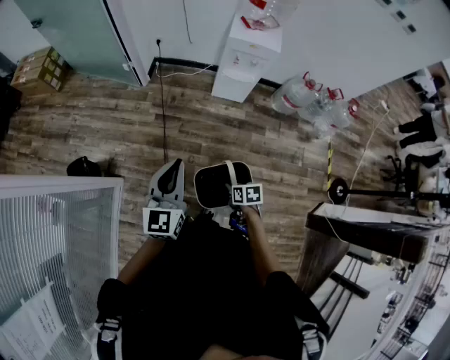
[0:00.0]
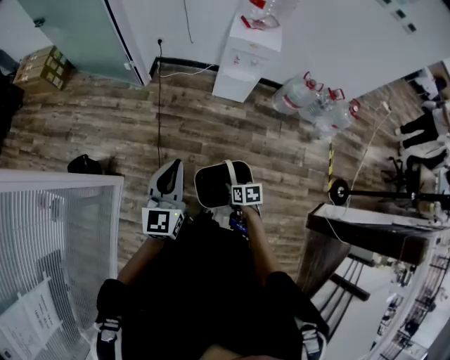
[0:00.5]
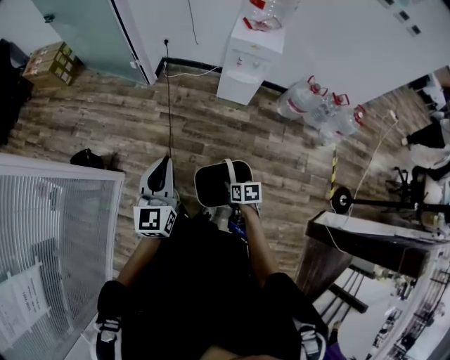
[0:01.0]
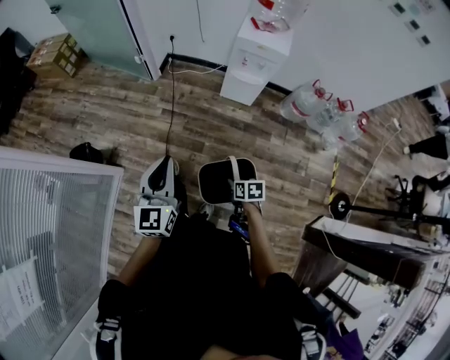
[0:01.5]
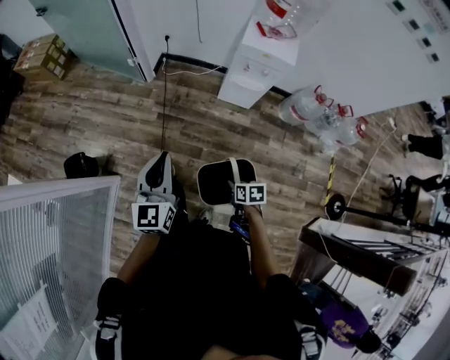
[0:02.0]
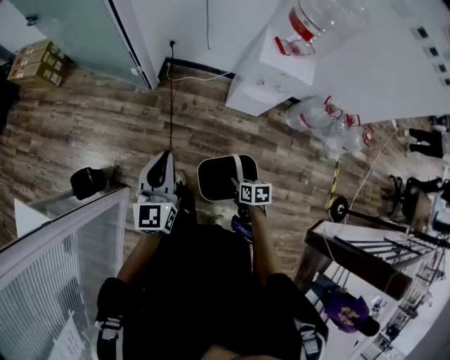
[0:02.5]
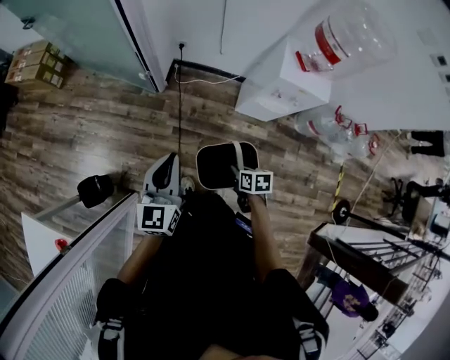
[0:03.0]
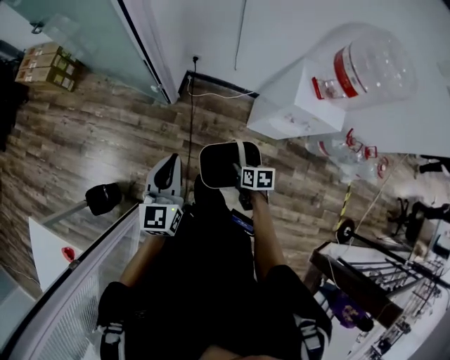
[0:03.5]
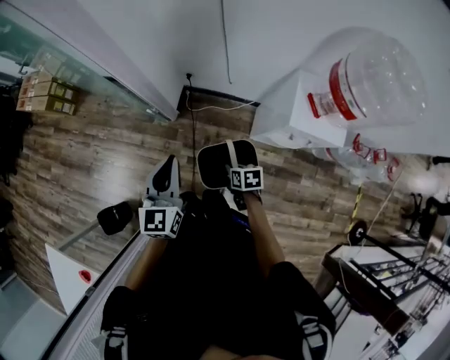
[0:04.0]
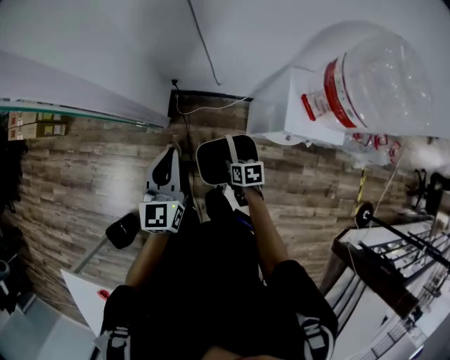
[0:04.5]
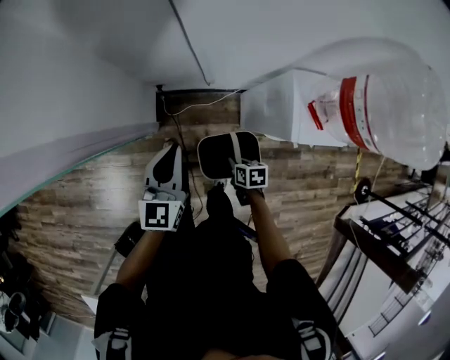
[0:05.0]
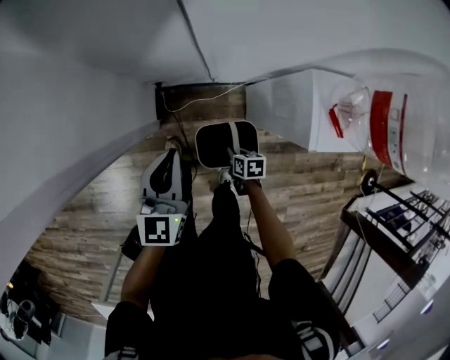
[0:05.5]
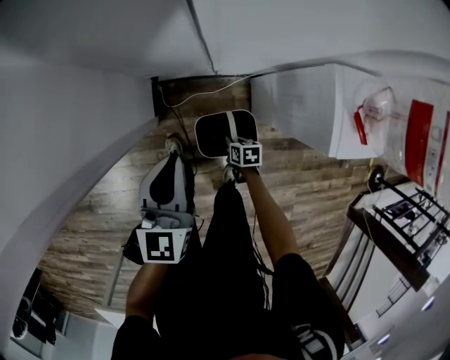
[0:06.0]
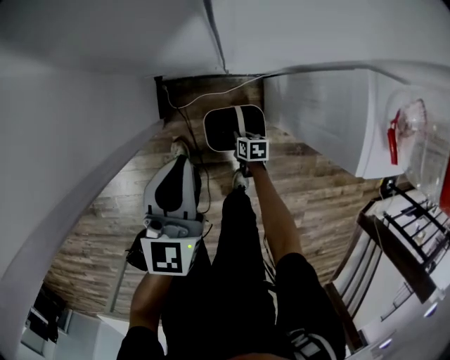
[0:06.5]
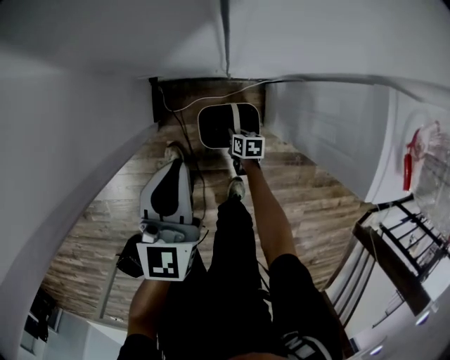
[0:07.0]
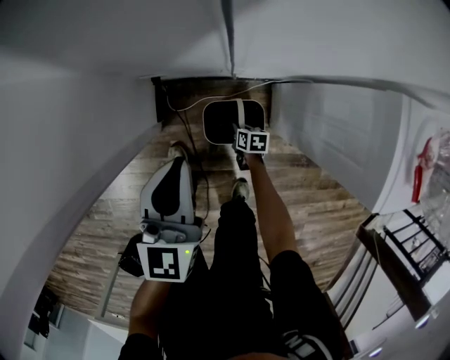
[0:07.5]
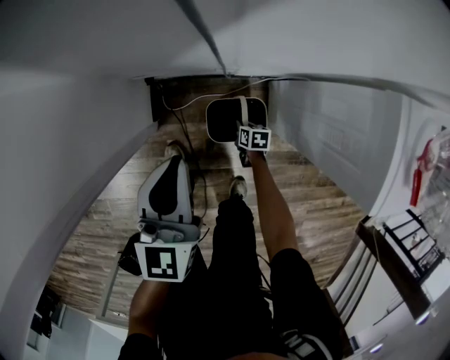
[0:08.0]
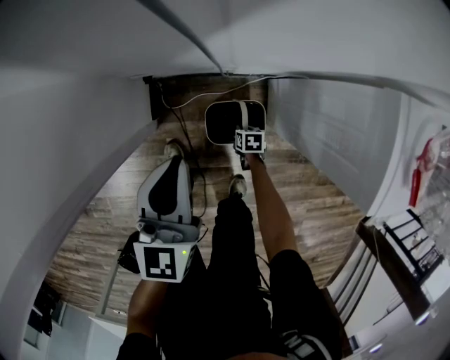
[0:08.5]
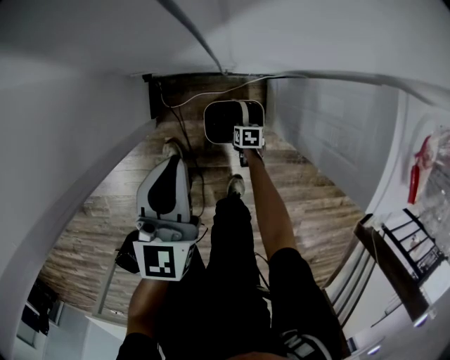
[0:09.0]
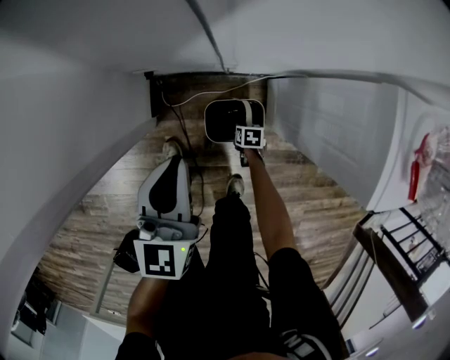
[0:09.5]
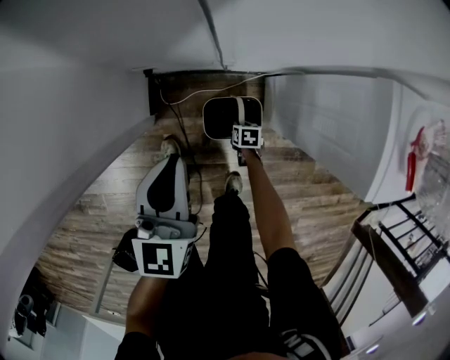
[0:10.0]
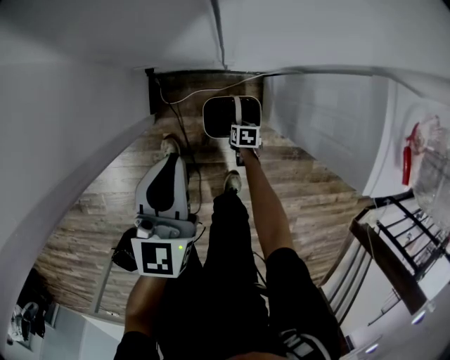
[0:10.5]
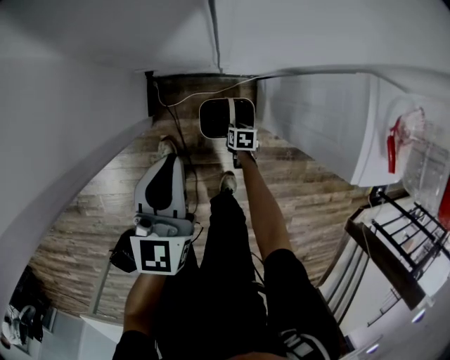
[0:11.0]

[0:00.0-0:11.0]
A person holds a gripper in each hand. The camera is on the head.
0:00.0 to 0:02.0: The left gripper heads forward, covering about 10 cm. The right gripper shifts approximately 10 cm forward and to the right.
0:02.0 to 0:03.5: Both grippers travel together forward, some 40 cm.
0:03.5 to 0:05.5: The right gripper travels forward and downward by approximately 35 cm, while the left gripper travels forward and to the right by approximately 40 cm, and rotates some 20 degrees.
0:05.5 to 0:07.5: The right gripper shifts roughly 30 cm downward; the left gripper heads downward, covering approximately 20 cm.
0:07.5 to 0:09.0: The right gripper shifts by roughly 5 cm.
0:09.0 to 0:11.0: The two grippers go approximately 5 cm upward.

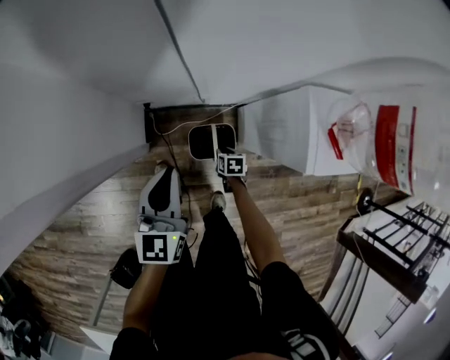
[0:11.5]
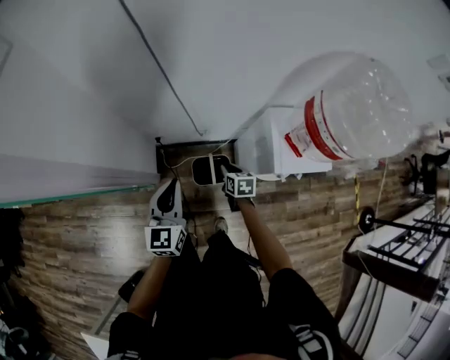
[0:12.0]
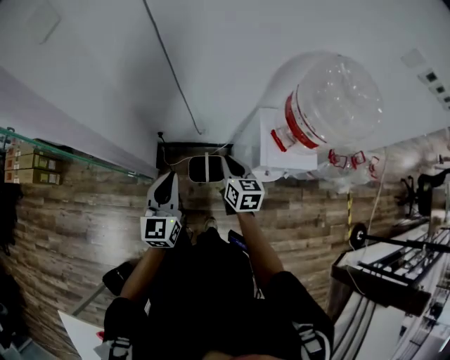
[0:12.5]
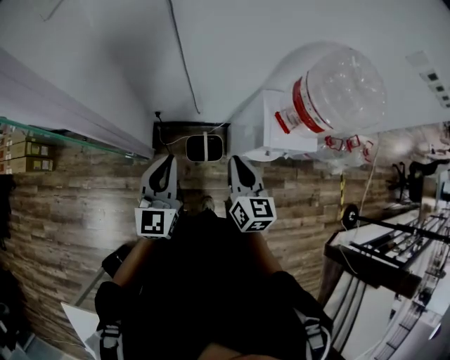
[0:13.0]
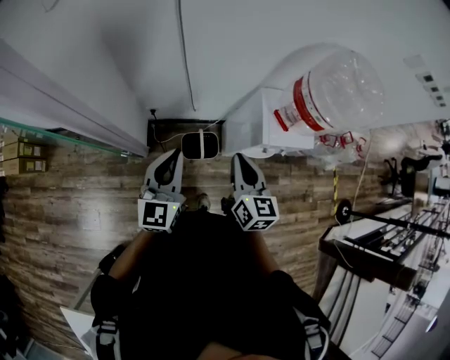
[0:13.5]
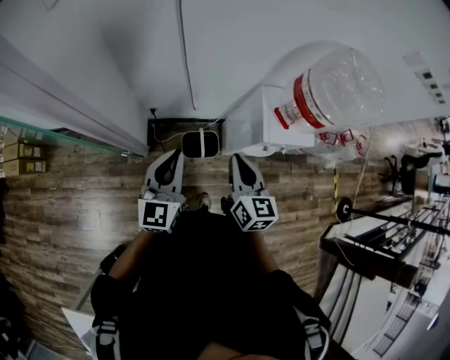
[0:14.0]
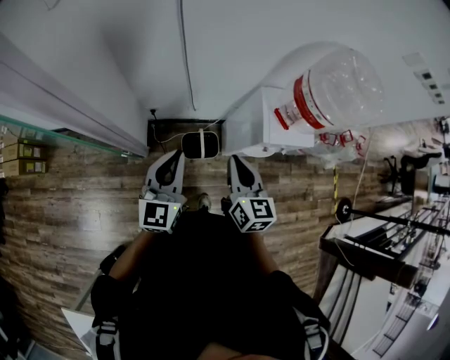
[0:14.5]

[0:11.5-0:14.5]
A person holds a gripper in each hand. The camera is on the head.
0:11.5 to 0:13.0: The right gripper is displaced upward by some 60 cm, and tips its fingers upward by about 50 degrees; the left gripper heads upward and backward, covering roughly 25 cm.
0:13.0 to 0:14.5: There are only small adjustments of the grippers.

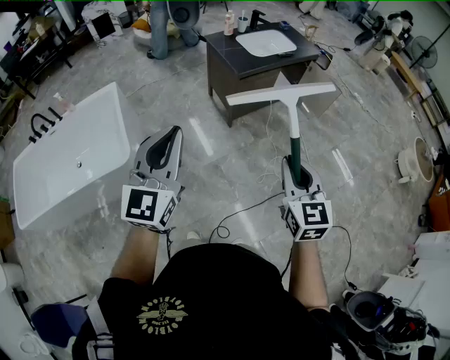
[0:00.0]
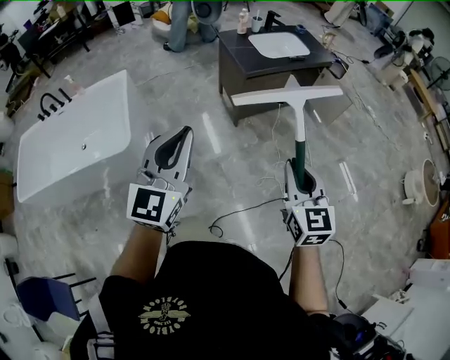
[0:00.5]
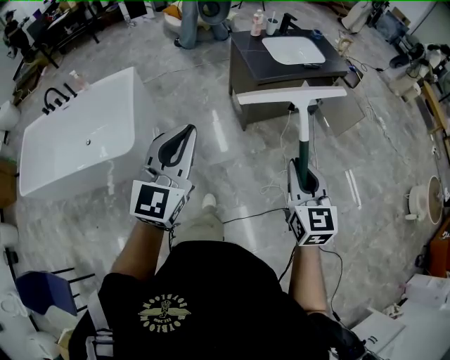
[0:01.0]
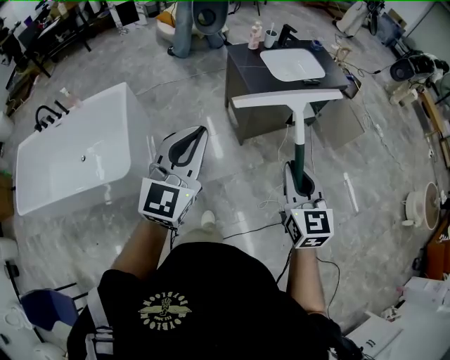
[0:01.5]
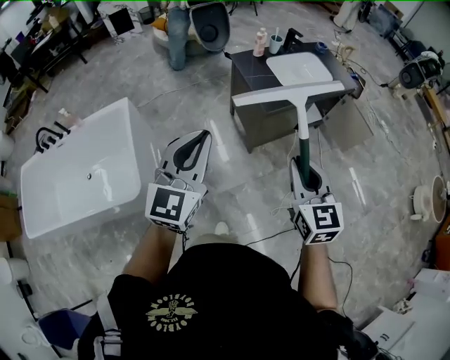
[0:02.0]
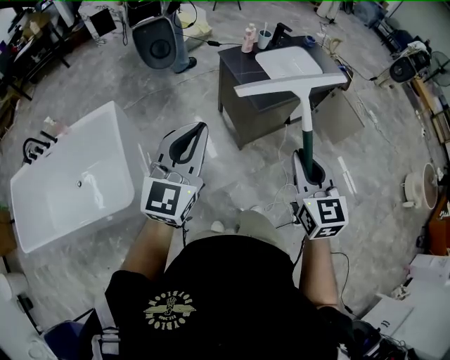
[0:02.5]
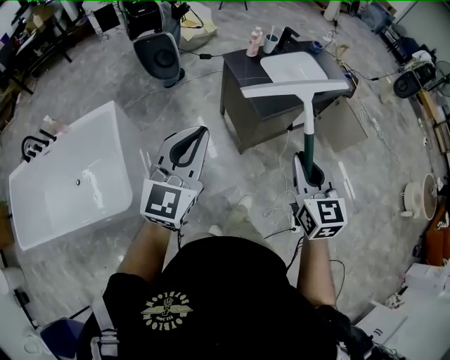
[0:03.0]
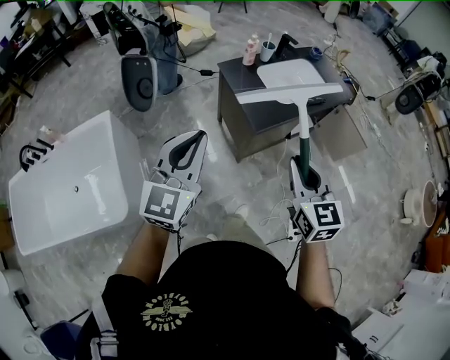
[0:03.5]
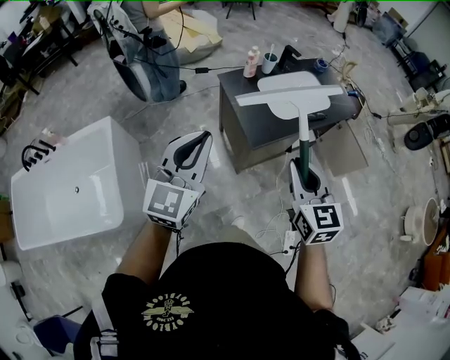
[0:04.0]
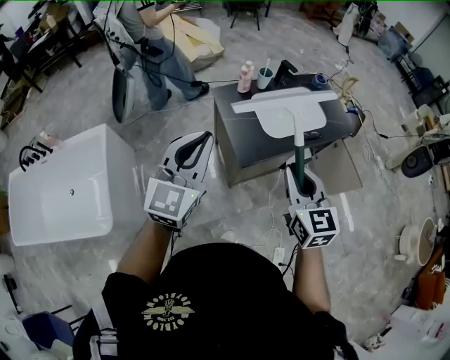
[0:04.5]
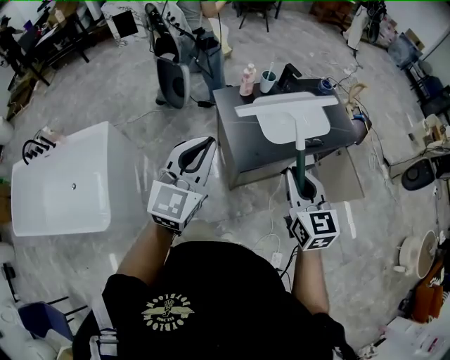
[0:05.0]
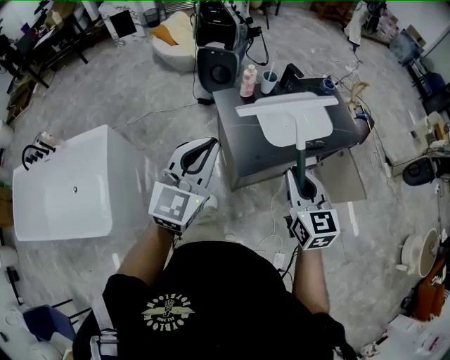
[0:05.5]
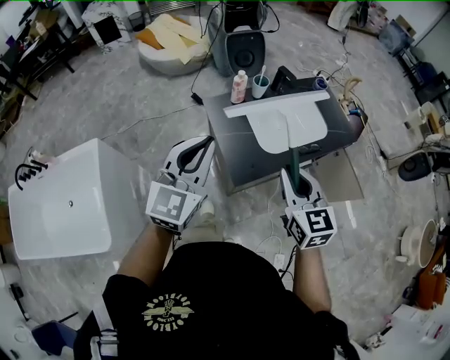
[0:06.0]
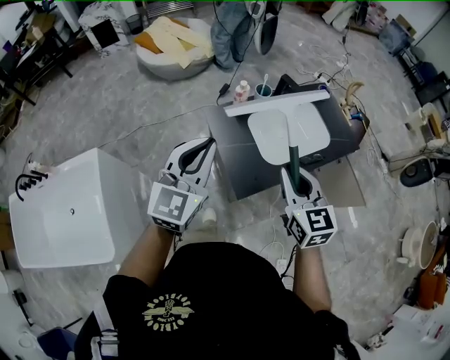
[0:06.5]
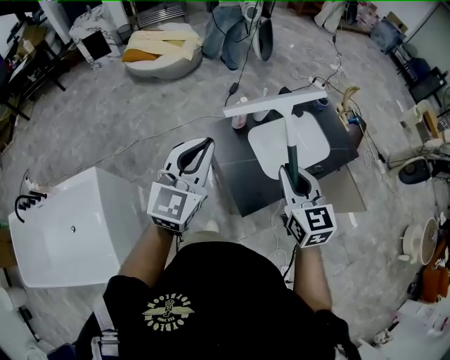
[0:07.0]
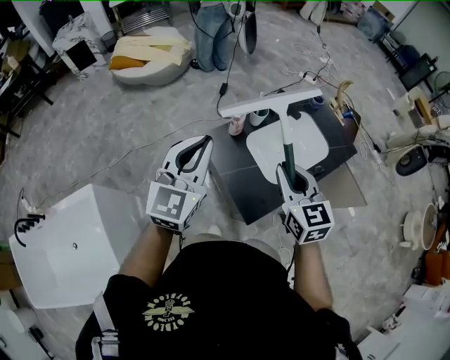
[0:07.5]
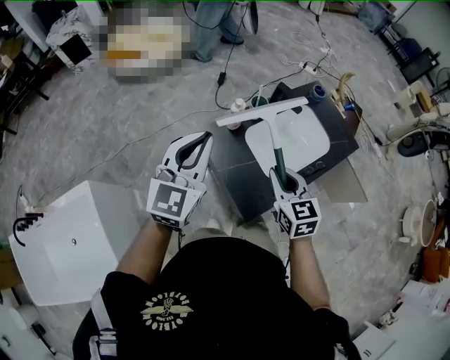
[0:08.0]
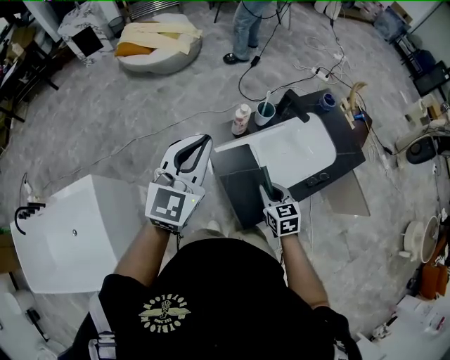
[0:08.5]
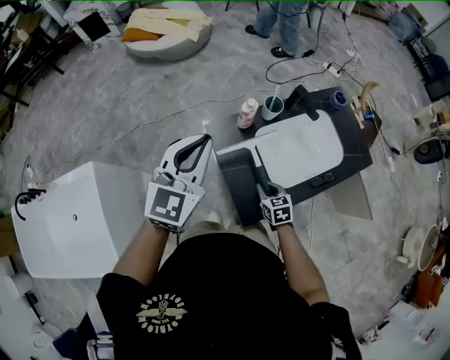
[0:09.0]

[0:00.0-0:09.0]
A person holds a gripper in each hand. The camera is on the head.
0:00.0 to 0:02.0: Both grippers travel together forward, roughly 30 cm.
0:02.0 to 0:04.5: The two grippers go approximately 30 cm forward.
0:04.5 to 0:07.0: The grippers both shift forward by some 25 cm.
0:07.0 to 0:09.0: The right gripper shifts about 35 cm downward, and tilts its fingers approximately 30 degrees downward; the left gripper shifts some 10 cm forward and downward.

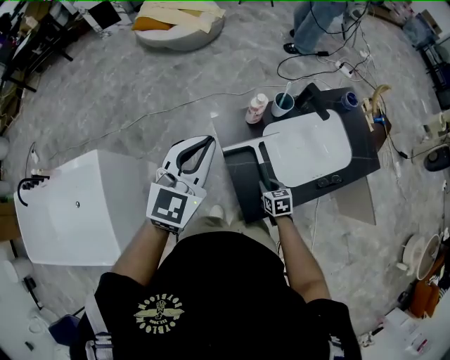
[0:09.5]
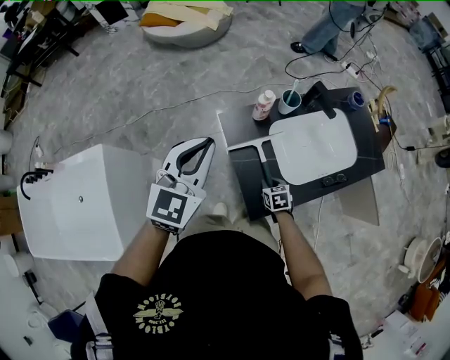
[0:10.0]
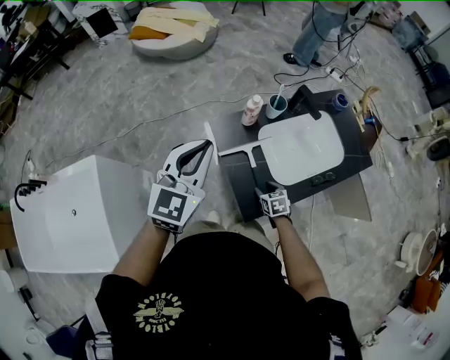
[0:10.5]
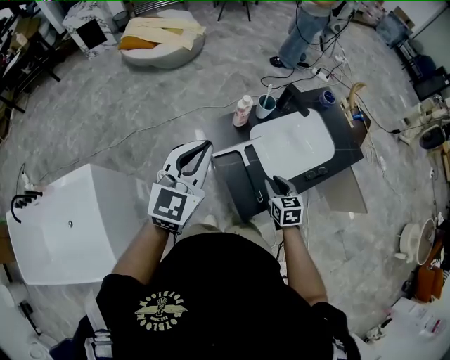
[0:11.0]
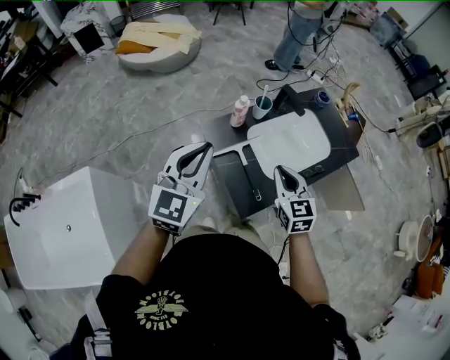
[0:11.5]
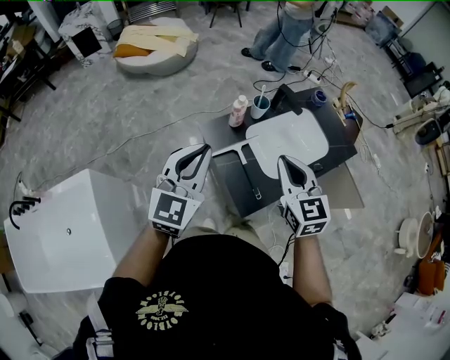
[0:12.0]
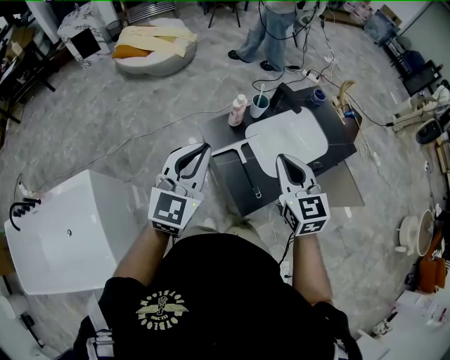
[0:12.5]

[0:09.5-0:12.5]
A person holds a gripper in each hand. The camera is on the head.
0:09.5 to 0:11.0: The right gripper moves upward, about 15 cm.
0:11.0 to 0:12.5: The right gripper heads upward, covering roughly 25 cm, turns by roughly 20 degrees, and closes.
